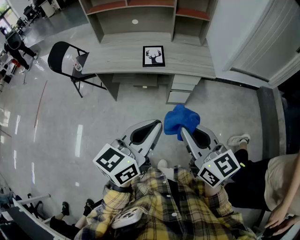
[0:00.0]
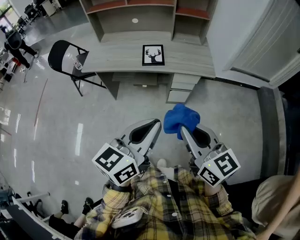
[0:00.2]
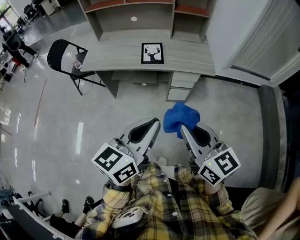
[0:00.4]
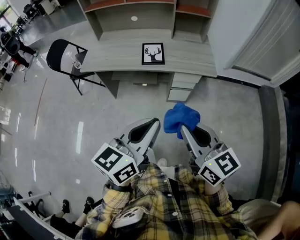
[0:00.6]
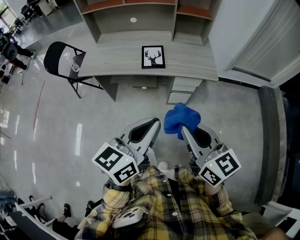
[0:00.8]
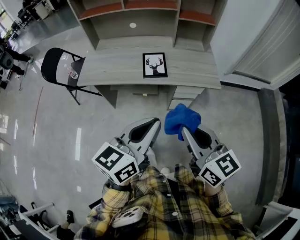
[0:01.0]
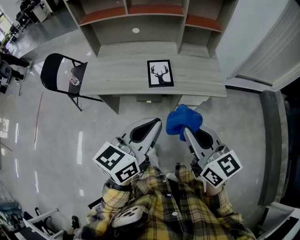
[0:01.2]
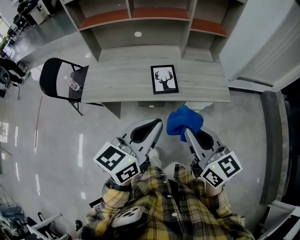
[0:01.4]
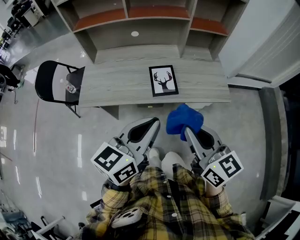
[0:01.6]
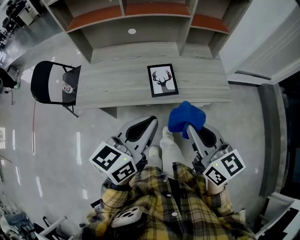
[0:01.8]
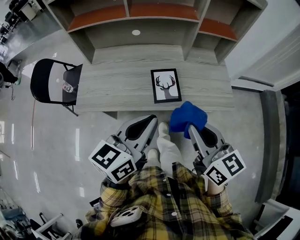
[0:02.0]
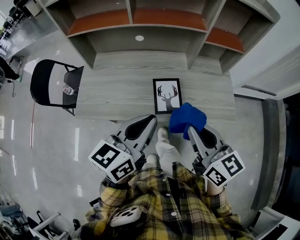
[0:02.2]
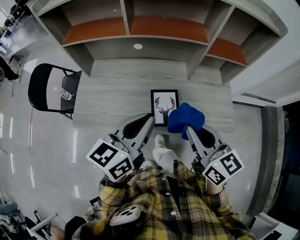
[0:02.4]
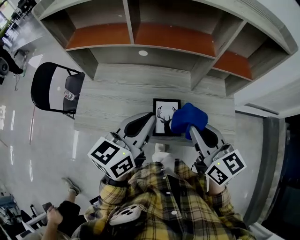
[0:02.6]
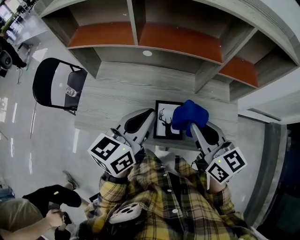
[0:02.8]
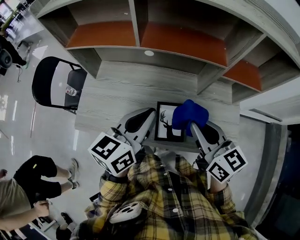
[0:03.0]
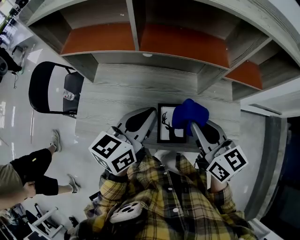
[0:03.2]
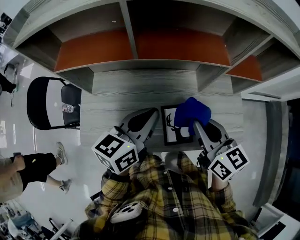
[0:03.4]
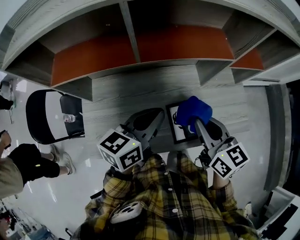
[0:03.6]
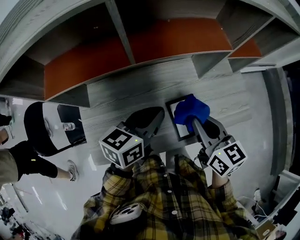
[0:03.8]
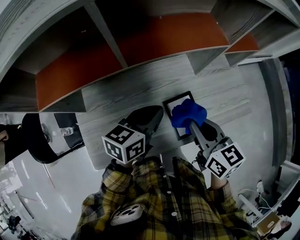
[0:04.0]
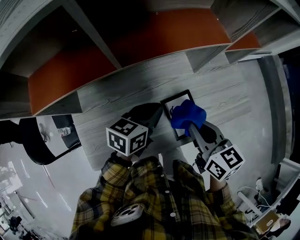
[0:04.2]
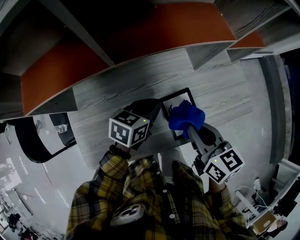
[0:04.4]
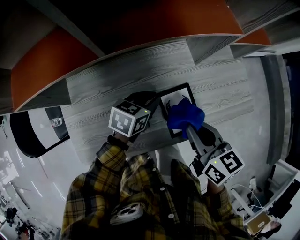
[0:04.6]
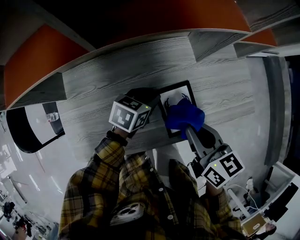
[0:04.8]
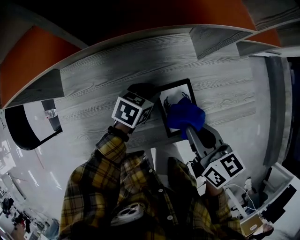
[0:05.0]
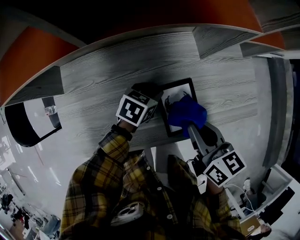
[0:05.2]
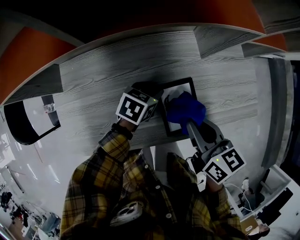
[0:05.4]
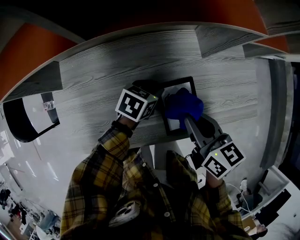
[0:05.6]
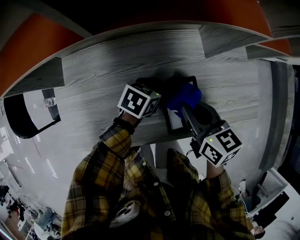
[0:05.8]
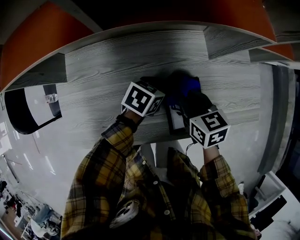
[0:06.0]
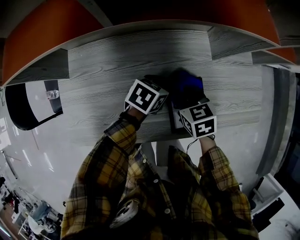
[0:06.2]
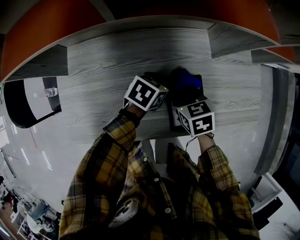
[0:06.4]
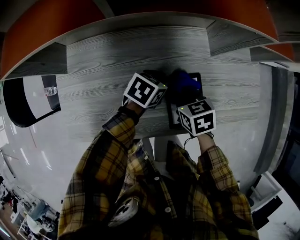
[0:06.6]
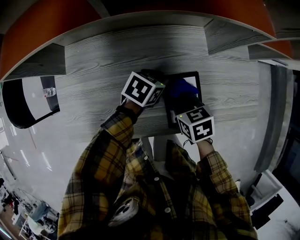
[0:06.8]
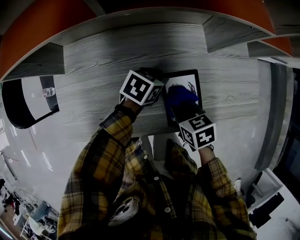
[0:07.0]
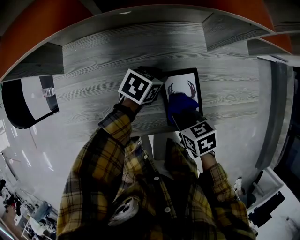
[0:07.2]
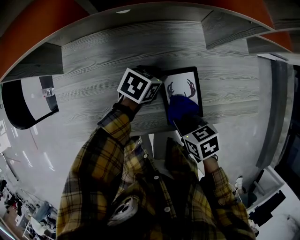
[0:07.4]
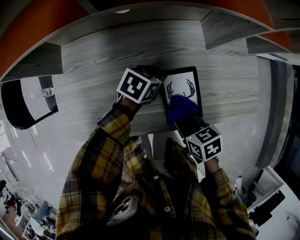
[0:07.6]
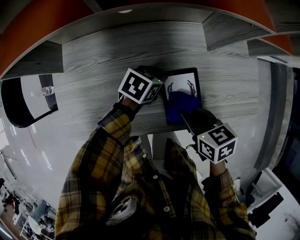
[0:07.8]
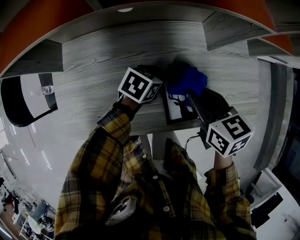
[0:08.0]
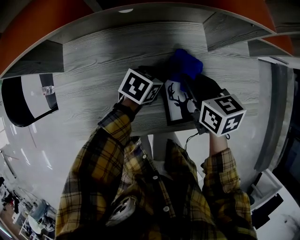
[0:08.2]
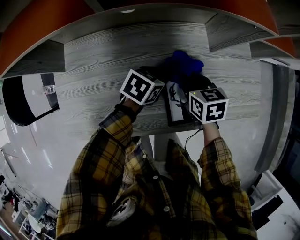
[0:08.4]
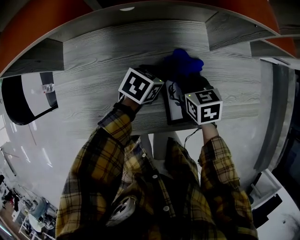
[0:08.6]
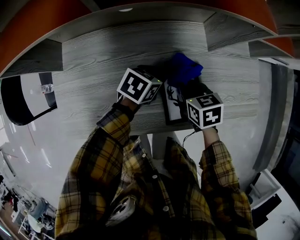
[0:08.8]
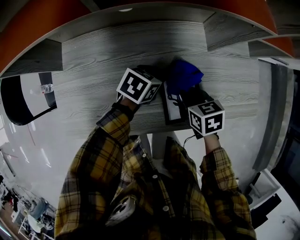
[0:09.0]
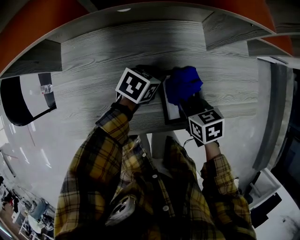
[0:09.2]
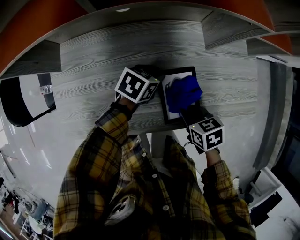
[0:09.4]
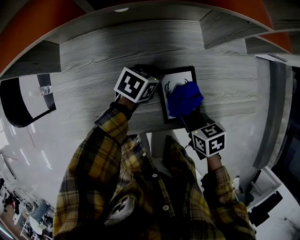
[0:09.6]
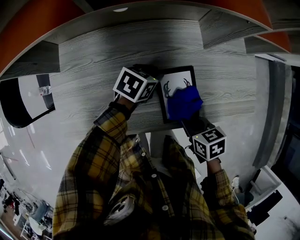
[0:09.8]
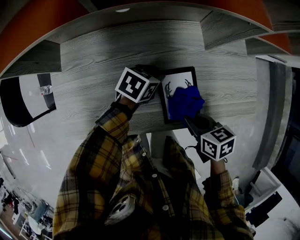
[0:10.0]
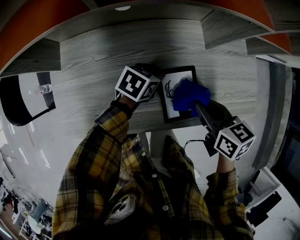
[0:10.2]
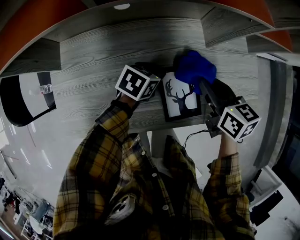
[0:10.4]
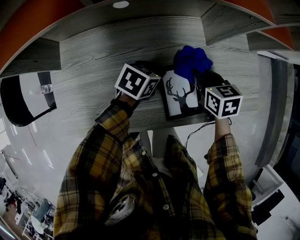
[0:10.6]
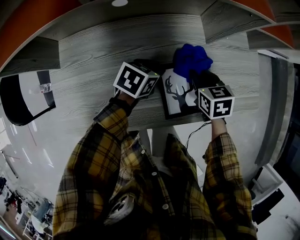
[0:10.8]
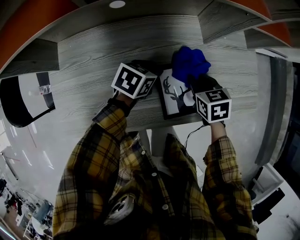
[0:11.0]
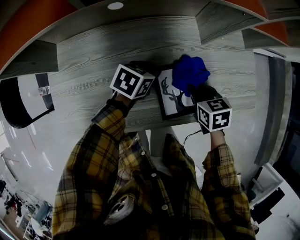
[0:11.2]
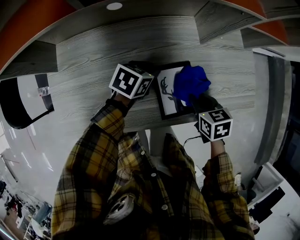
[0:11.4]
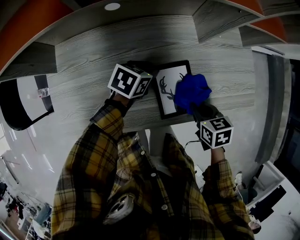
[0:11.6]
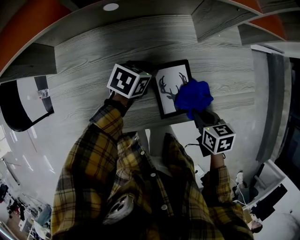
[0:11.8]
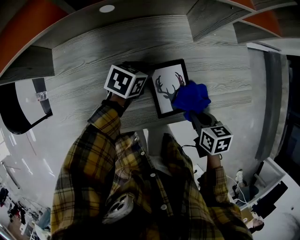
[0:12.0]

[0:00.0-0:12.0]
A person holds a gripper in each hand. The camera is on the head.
0.0 to 1.6 s: The grippers both shift forward and to the left by about 25 cm.
1.6 to 3.0 s: The grippers both shift forward by some 30 cm.
3.0 to 4.4 s: The right gripper travels downward by roughly 10 cm, and turns by roughly 30 degrees. The left gripper heads downward, covering about 20 cm, and rotates about 40 degrees.
4.4 to 6.0 s: The right gripper goes about 15 cm downward and forward, and rotates about 20 degrees; the left gripper heads downward, covering roughly 10 cm, and opens.
6.0 to 7.6 s: The right gripper shifts by about 15 cm, and rotates roughly 20 degrees.
7.6 to 9.0 s: The right gripper reaches about 10 cm upward, then returns.
9.0 to 10.4 s: The right gripper moves upward, approximately 10 cm, and turns by about 20 degrees.
10.4 to 12.0 s: The right gripper moves backward, downward and to the right, approximately 20 cm, and changes its angle by approximately 20 degrees.

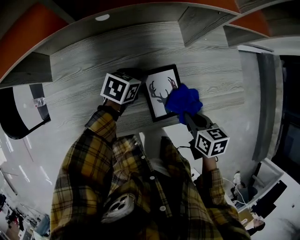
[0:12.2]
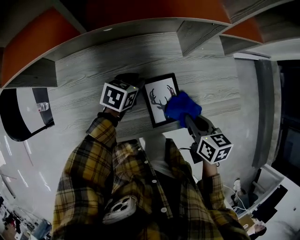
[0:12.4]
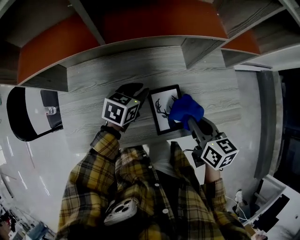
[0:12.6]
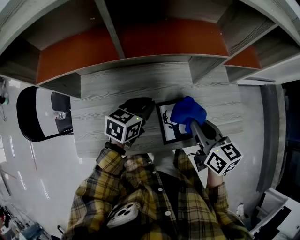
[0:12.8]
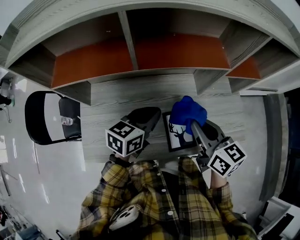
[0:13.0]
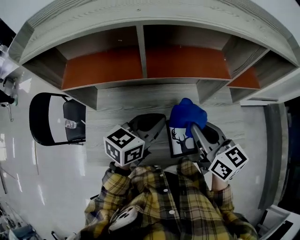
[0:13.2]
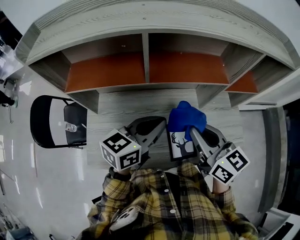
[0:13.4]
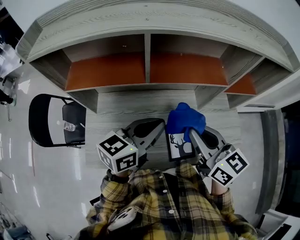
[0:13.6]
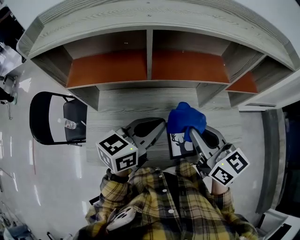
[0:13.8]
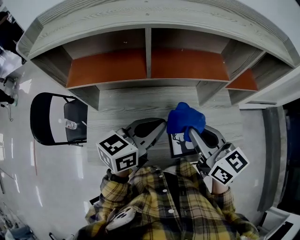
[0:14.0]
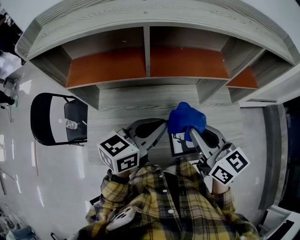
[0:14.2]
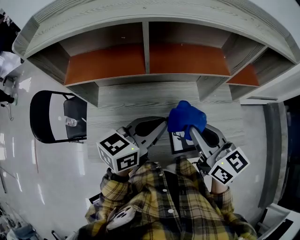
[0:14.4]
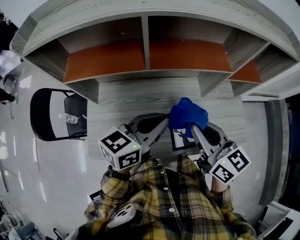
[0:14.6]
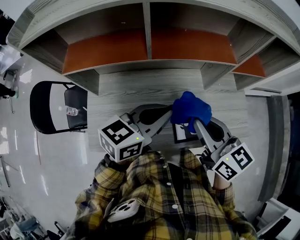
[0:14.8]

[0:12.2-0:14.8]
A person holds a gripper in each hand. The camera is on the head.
12.2 to 13.4 s: The left gripper goes roughly 30 cm upward, angles its fingers upward, by about 40 degrees, and closes its fingers; the right gripper travels upward and to the left by some 30 cm, and tilts its fingers some 40 degrees upward.
13.4 to 14.8 s: The grippers stay close to where they were, moving slightly.

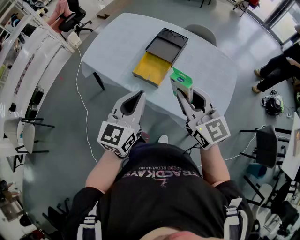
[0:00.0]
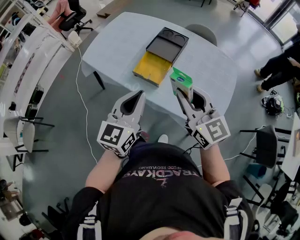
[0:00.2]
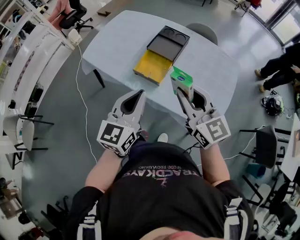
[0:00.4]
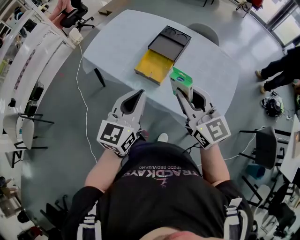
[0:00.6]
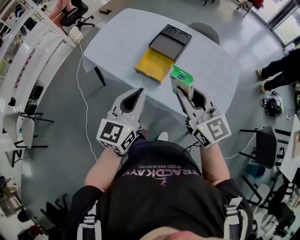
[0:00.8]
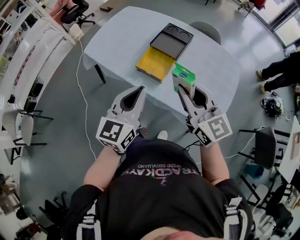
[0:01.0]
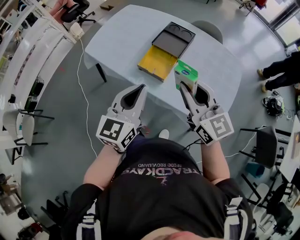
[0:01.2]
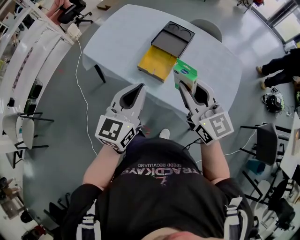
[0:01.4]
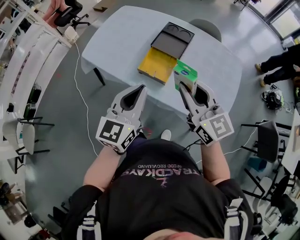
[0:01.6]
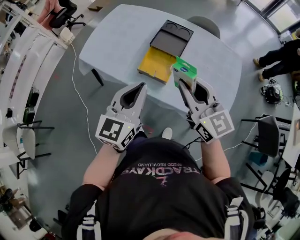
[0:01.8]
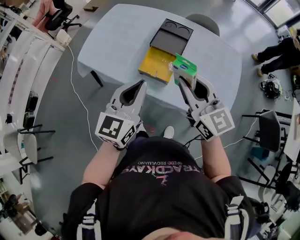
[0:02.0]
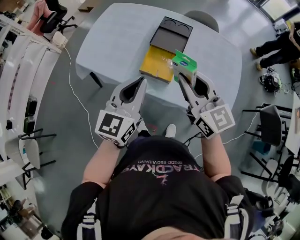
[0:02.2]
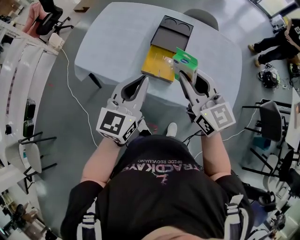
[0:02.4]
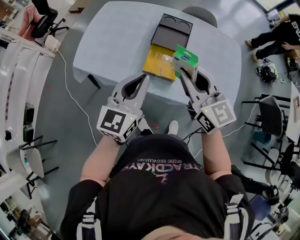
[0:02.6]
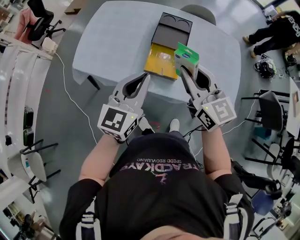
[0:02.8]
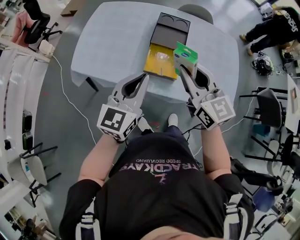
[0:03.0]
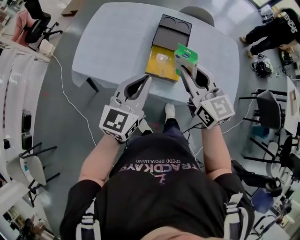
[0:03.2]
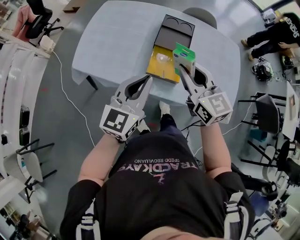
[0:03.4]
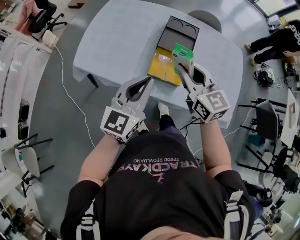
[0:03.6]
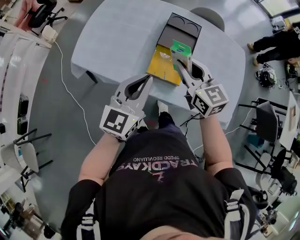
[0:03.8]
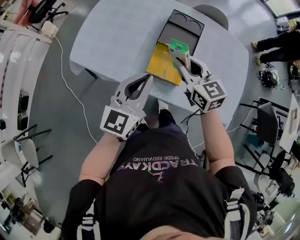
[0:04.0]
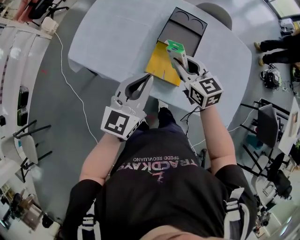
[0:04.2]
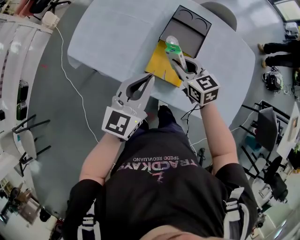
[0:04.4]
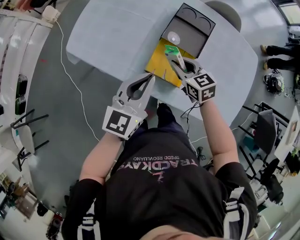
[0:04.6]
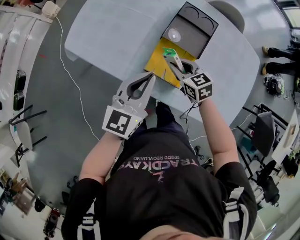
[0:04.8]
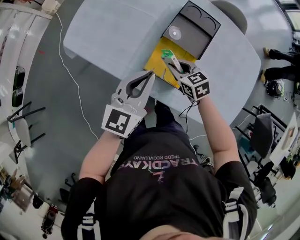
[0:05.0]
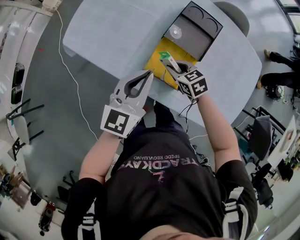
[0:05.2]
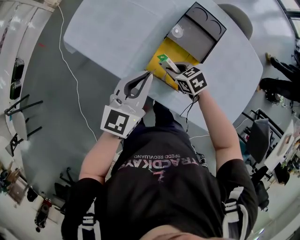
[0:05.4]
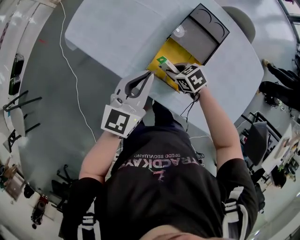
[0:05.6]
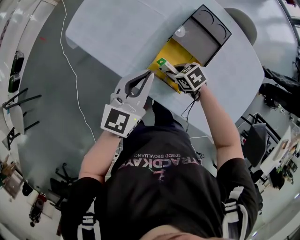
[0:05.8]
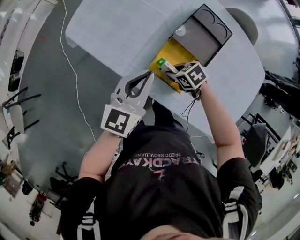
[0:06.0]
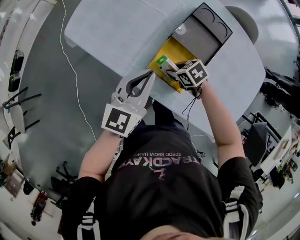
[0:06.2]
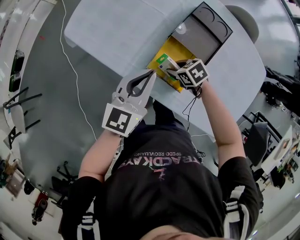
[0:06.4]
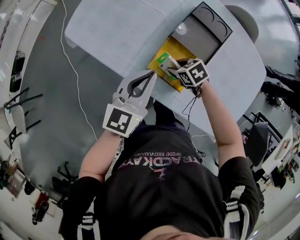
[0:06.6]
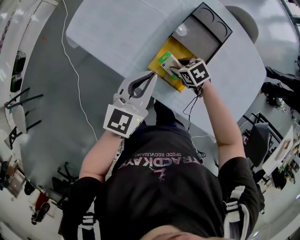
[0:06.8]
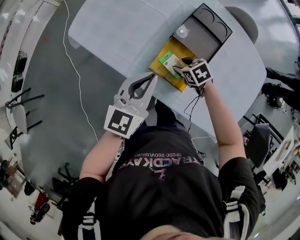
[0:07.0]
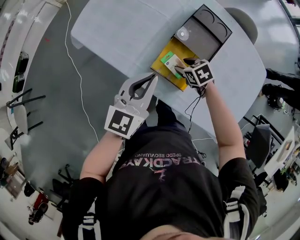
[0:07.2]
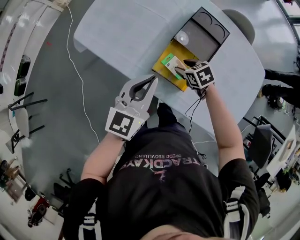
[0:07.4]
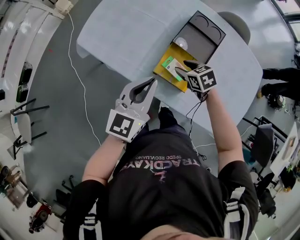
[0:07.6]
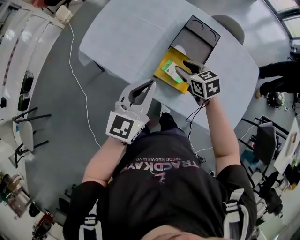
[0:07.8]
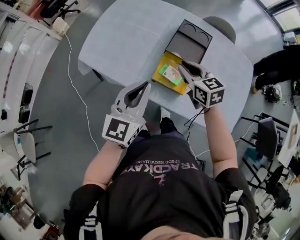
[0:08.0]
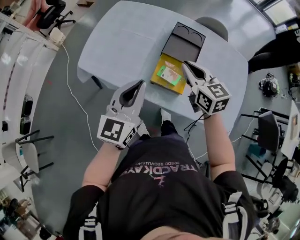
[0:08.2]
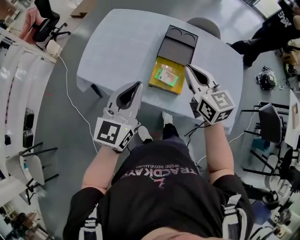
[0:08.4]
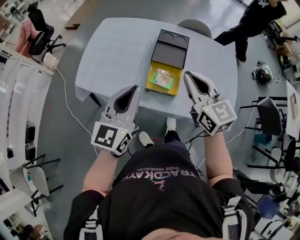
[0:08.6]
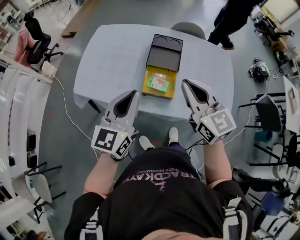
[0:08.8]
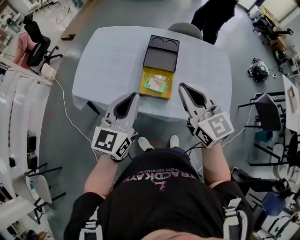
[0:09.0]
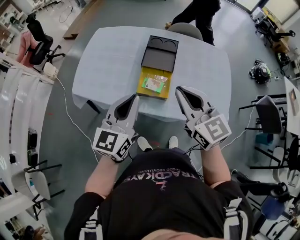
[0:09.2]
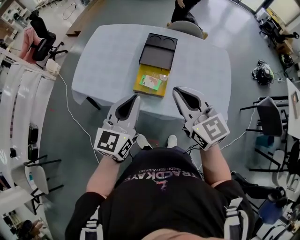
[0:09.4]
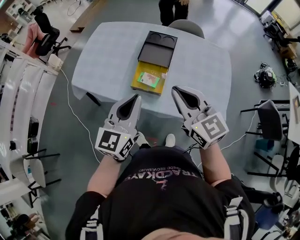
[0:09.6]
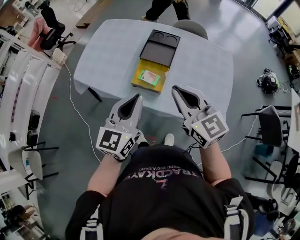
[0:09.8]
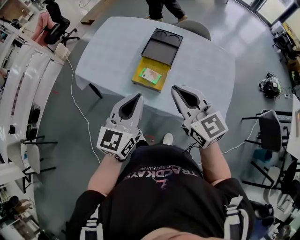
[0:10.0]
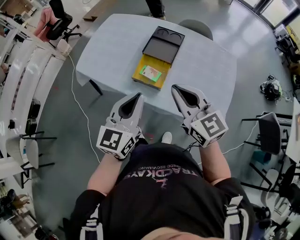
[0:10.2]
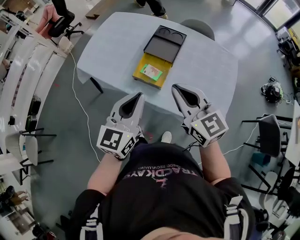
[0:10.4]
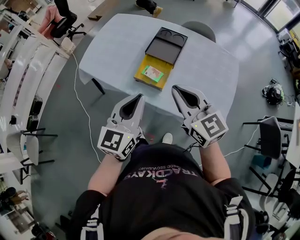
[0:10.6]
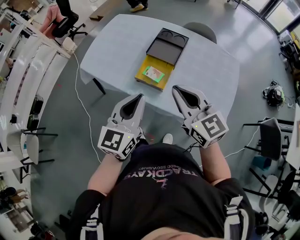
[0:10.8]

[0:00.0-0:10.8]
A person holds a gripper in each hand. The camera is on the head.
0.0 to 1.6 s: The right gripper shifts by about 5 cm, while the left gripper shifts by about 5 cm.
1.6 to 3.0 s: Both grippers move to the left and forward, some 15 cm.
3.0 to 4.6 s: The right gripper moves downward and forward, about 25 cm, and rotates approximately 30 degrees. Meanwhile the left gripper moves downward and forward, roughly 10 cm.
4.6 to 6.2 s: The left gripper shifts by approximately 5 cm; the right gripper heads downward, covering about 15 cm, and changes its angle by about 40 degrees.
6.2 to 7.8 s: The left gripper shifts some 5 cm upward, while the right gripper goes some 15 cm upward, and turns by approximately 30 degrees.
7.8 to 9.2 s: The left gripper travels upward and backward by some 10 cm, while the right gripper is displaced upward and backward by roughly 30 cm, tips its fingers upward by roughly 40 degrees, and closes up.
9.2 to 10.8 s: The left gripper goes some 10 cm backward and to the right. Meanwhile the right gripper shifts approximately 5 cm to the right.
